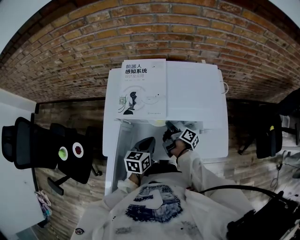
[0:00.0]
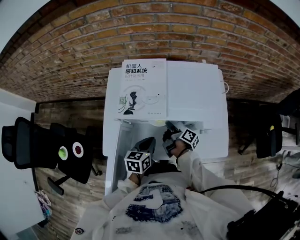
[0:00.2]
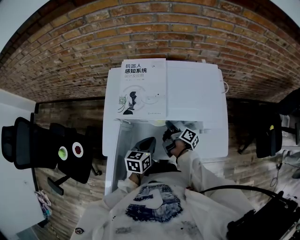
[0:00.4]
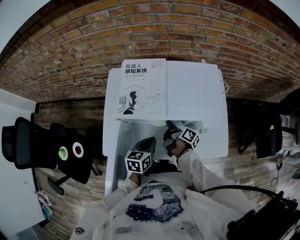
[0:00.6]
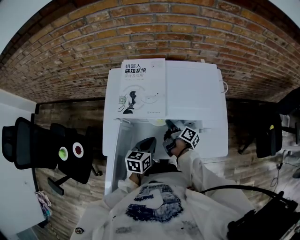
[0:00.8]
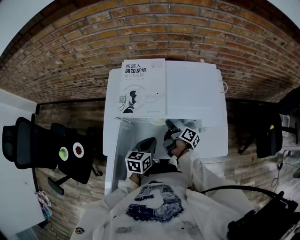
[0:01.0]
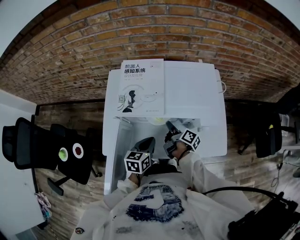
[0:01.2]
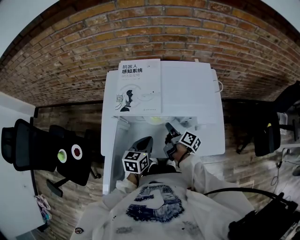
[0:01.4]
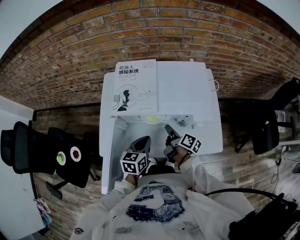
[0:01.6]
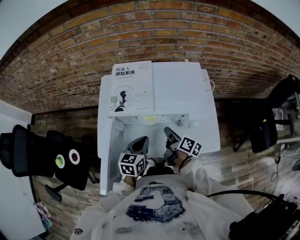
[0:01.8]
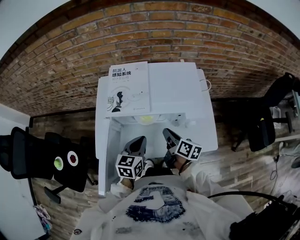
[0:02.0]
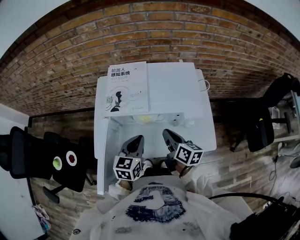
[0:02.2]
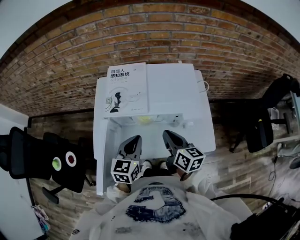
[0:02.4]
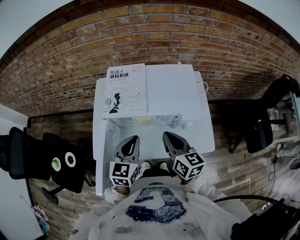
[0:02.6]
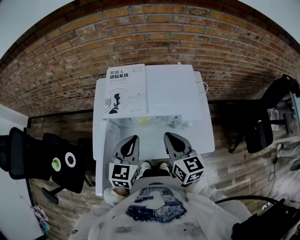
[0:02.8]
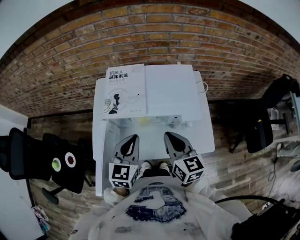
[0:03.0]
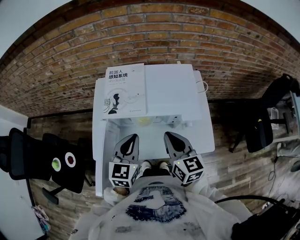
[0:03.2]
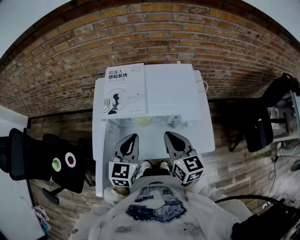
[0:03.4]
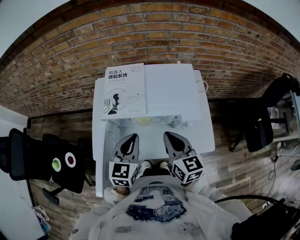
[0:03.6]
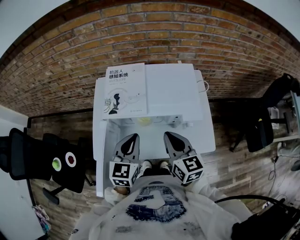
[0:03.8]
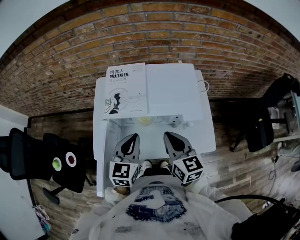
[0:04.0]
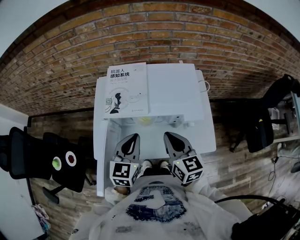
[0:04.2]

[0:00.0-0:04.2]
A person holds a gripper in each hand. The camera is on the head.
0:01.4 to 0:02.8: The left gripper travels upward by about 15 cm, and changes its angle by about 20 degrees.

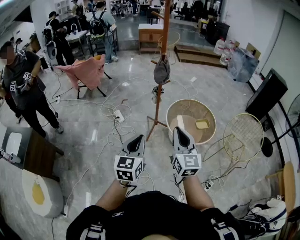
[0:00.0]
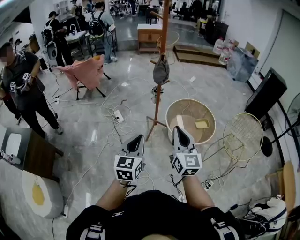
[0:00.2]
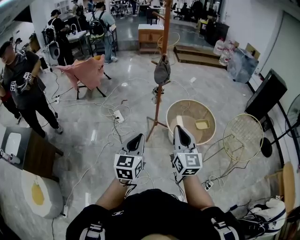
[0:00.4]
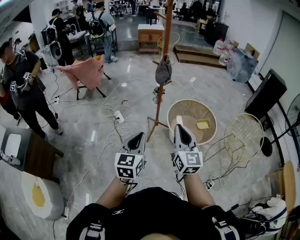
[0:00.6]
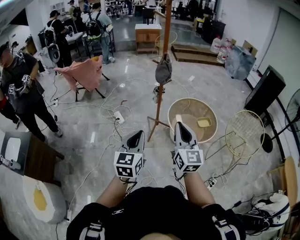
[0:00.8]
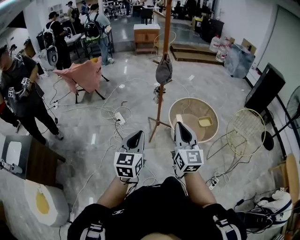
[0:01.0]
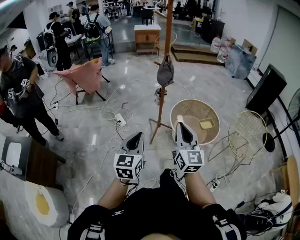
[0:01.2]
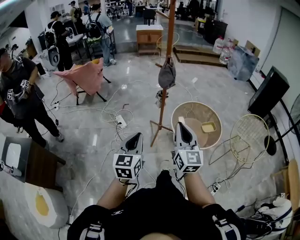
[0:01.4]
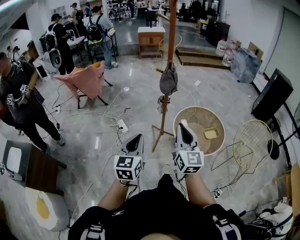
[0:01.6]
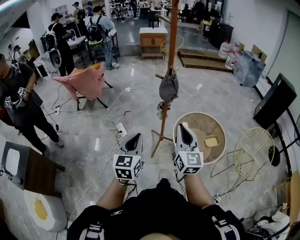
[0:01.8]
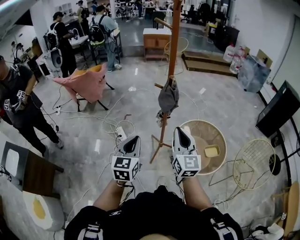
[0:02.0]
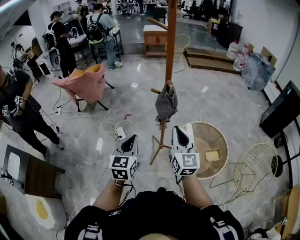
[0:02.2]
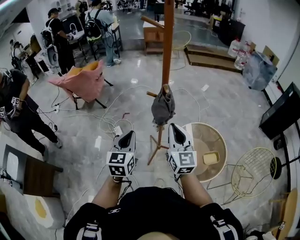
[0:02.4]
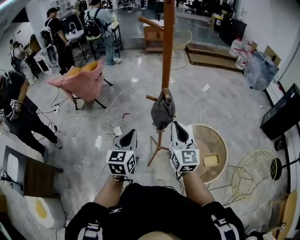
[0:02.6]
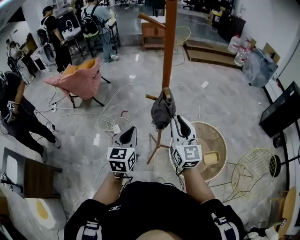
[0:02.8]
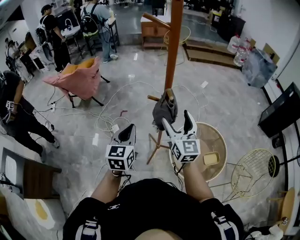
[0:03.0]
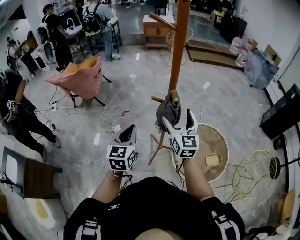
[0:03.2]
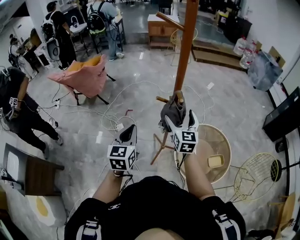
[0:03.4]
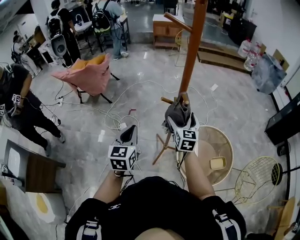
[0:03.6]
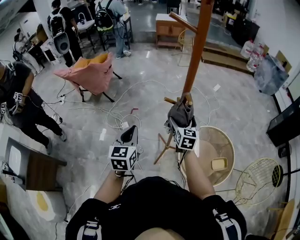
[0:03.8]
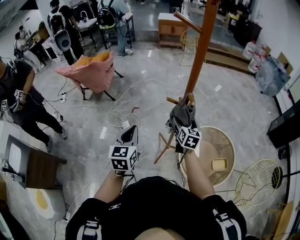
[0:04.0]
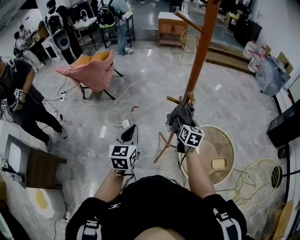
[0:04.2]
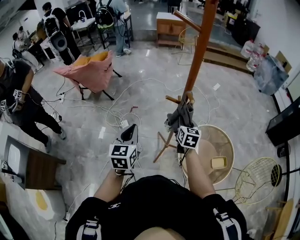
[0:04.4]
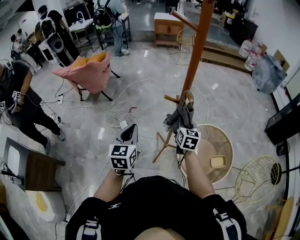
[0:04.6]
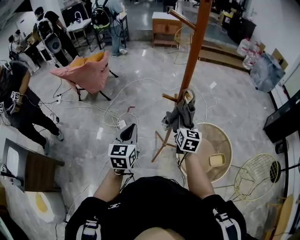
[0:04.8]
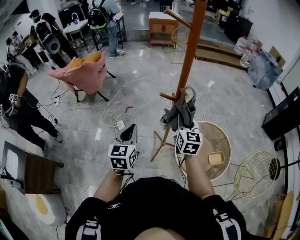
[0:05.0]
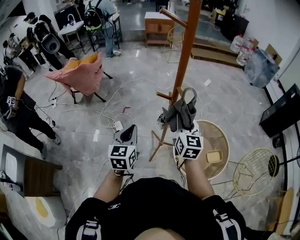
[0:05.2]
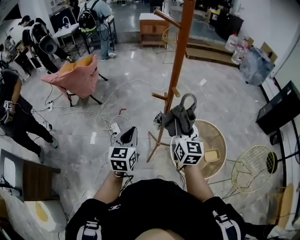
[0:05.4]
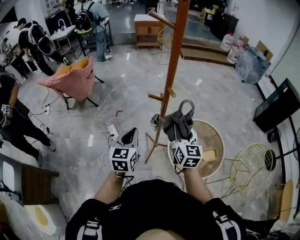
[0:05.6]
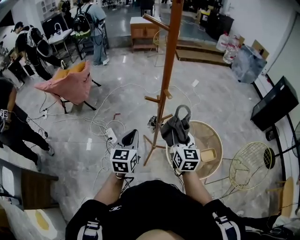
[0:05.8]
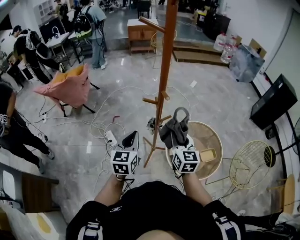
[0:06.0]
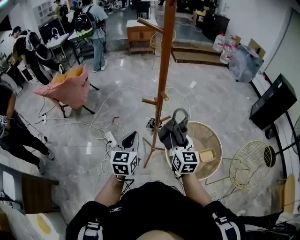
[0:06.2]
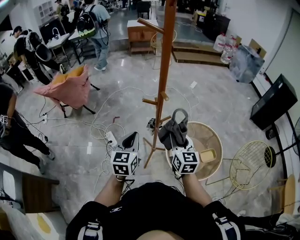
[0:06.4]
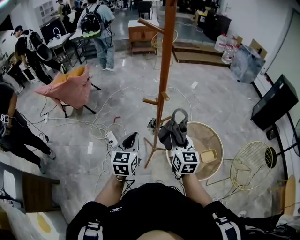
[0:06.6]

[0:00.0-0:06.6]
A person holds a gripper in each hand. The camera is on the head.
0:00.0 to 0:01.6: The left gripper travels forward and to the left by roughly 20 cm; the right gripper is displaced forward by approximately 15 cm.
0:01.6 to 0:03.2: The two grippers travel together, forward, approximately 50 cm. The right gripper opens its fingers.
0:03.2 to 0:05.0: The right gripper moves some 15 cm downward and comes back, and closes its fingers.
0:05.0 to 0:06.6: The right gripper travels backward by some 10 cm, while the left gripper moves to the right, about 10 cm.

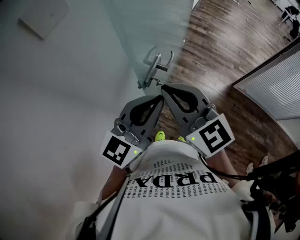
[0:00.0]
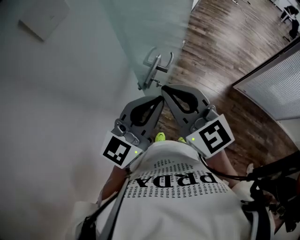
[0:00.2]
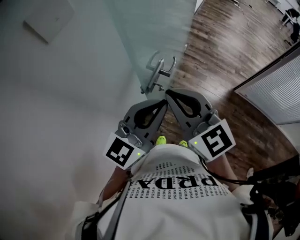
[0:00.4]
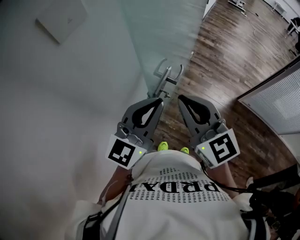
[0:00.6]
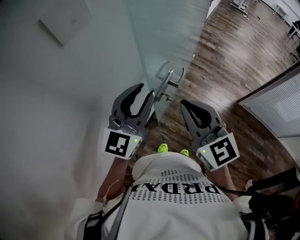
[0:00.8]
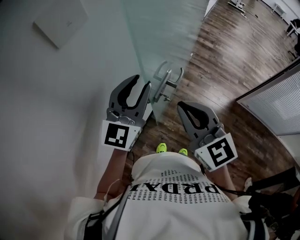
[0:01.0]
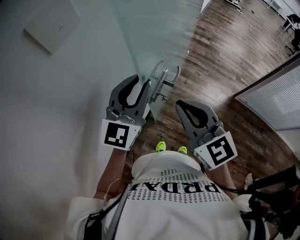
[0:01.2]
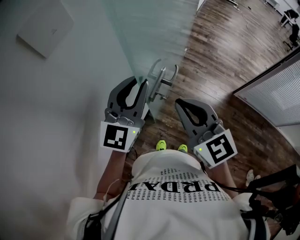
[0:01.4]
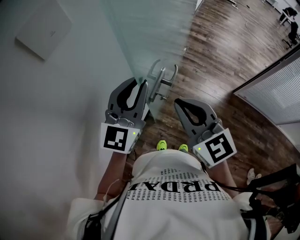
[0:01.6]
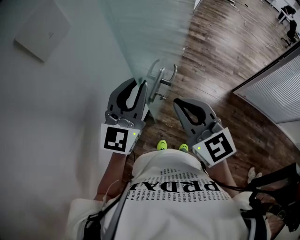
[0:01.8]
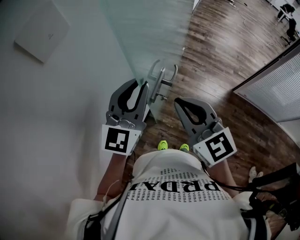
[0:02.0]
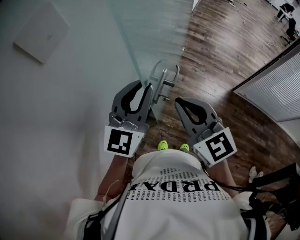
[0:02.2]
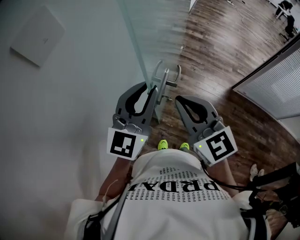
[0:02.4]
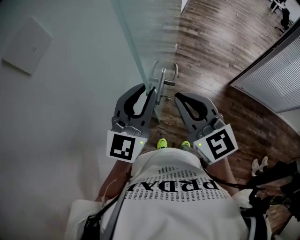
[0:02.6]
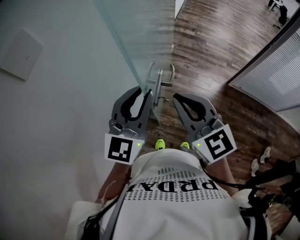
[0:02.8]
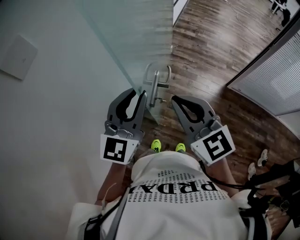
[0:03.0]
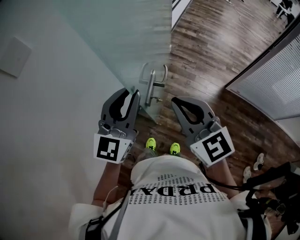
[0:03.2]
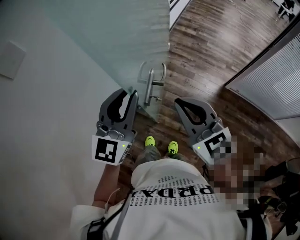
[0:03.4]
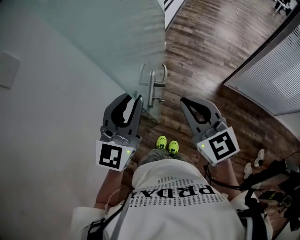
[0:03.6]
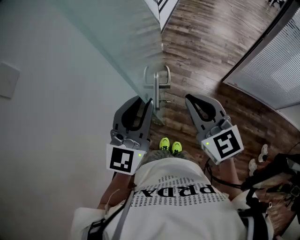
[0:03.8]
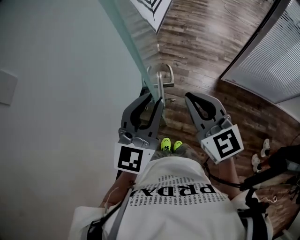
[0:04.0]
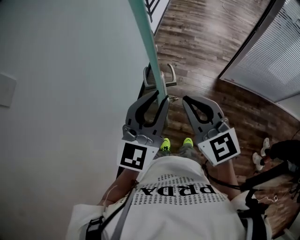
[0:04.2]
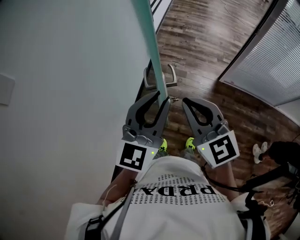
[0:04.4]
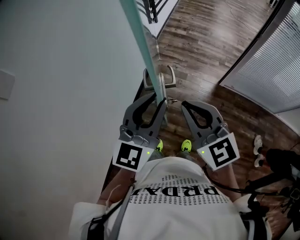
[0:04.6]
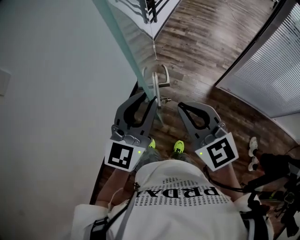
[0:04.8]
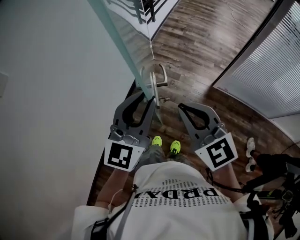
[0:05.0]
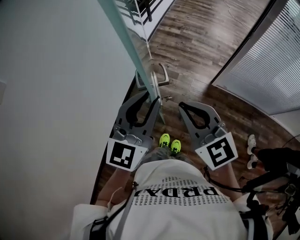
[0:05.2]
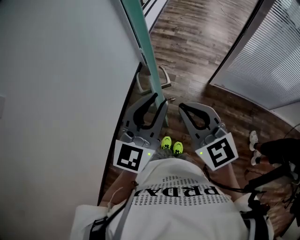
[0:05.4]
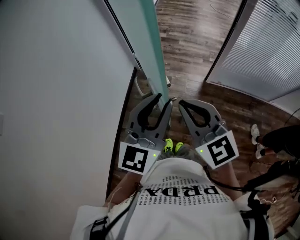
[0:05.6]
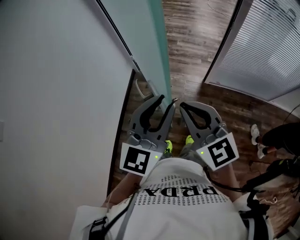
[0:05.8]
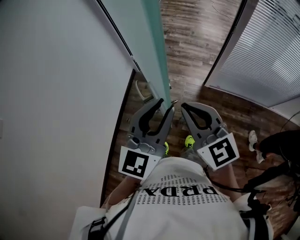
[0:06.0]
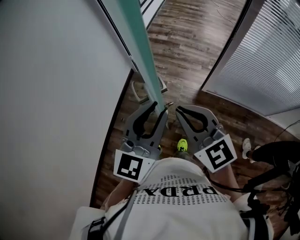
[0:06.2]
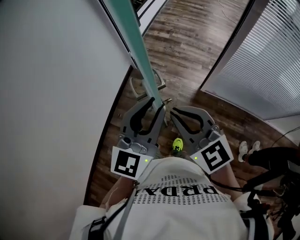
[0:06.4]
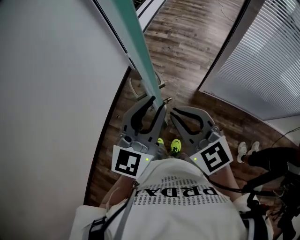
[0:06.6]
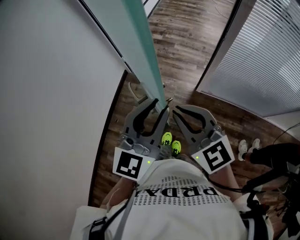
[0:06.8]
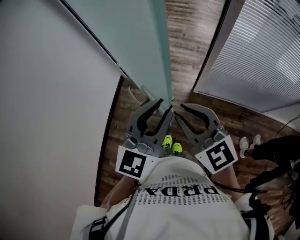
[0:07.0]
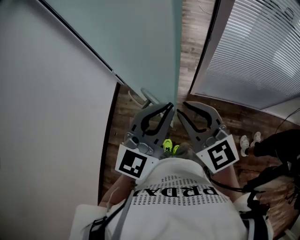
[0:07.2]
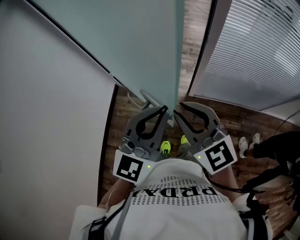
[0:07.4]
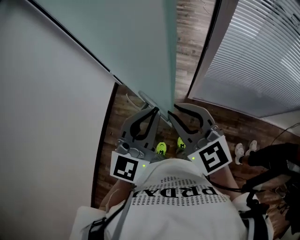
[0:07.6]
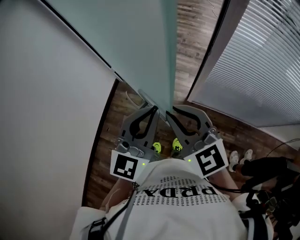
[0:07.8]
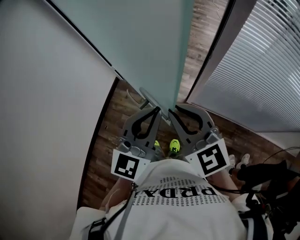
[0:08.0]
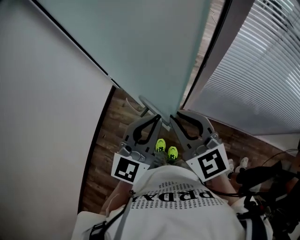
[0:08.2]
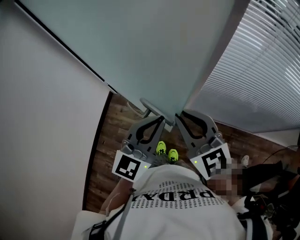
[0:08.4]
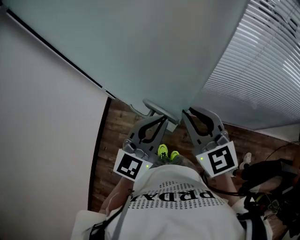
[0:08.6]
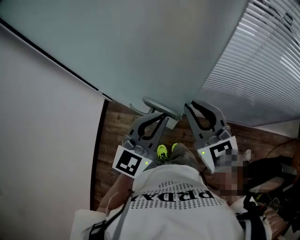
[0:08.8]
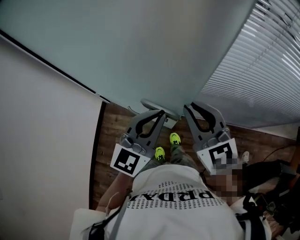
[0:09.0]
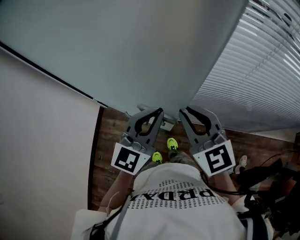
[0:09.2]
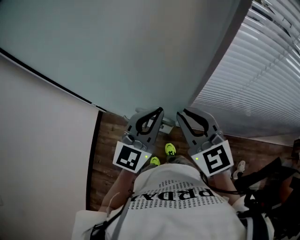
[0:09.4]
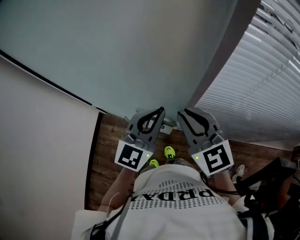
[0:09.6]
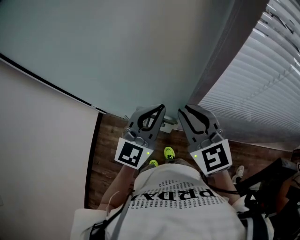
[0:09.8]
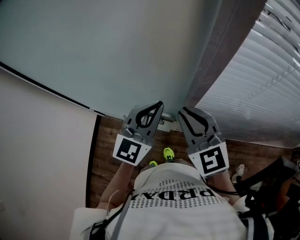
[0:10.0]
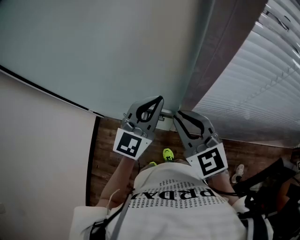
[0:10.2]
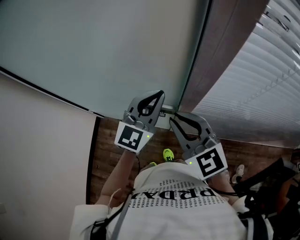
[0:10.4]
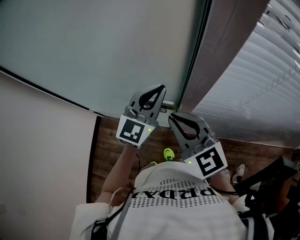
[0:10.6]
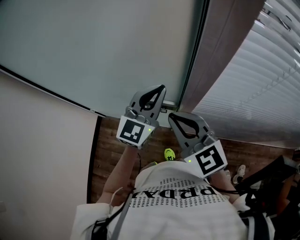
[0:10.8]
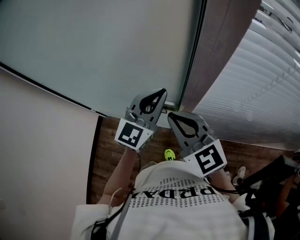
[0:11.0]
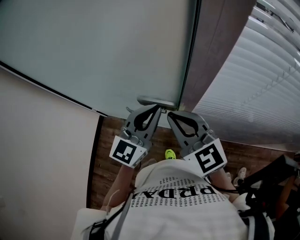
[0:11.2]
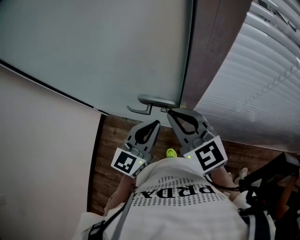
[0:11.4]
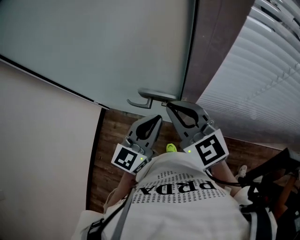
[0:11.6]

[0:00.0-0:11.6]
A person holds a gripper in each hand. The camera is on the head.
0:00.0 to 0:01.4: The left gripper shifts about 10 cm forward and to the left, and changes its angle by some 20 degrees.
0:01.4 to 0:02.8: The two grippers go some 10 cm to the right.
0:02.8 to 0:04.4: The grippers both shift to the right by roughly 20 cm.
0:04.4 to 0:08.8: The grippers stay close to where they were, moving slightly.
0:08.8 to 0:10.2: The left gripper travels forward by about 5 cm.
0:10.2 to 0:11.6: The left gripper shifts some 10 cm backward. Meanwhile the right gripper moves roughly 5 cm.

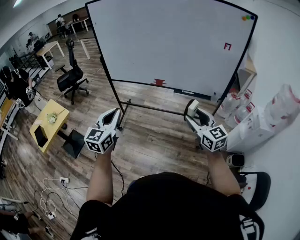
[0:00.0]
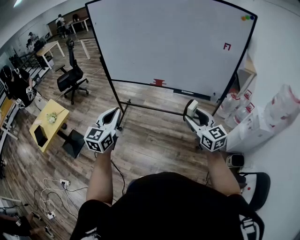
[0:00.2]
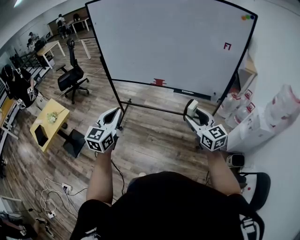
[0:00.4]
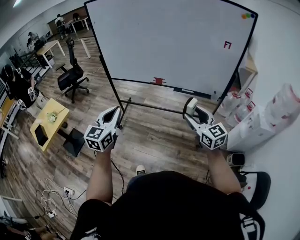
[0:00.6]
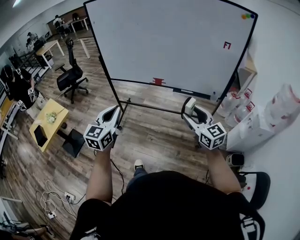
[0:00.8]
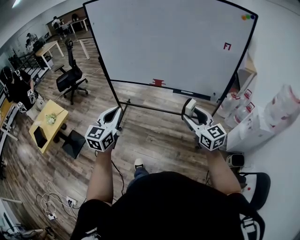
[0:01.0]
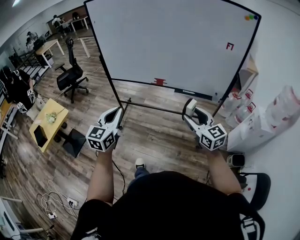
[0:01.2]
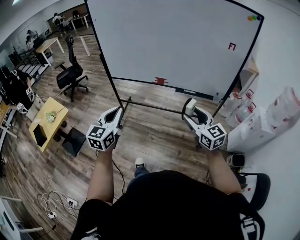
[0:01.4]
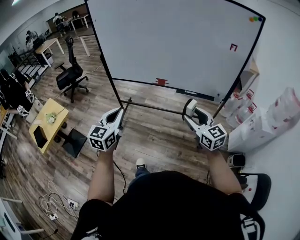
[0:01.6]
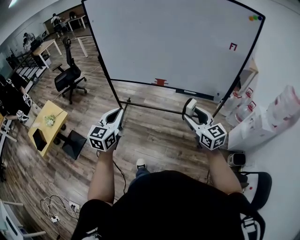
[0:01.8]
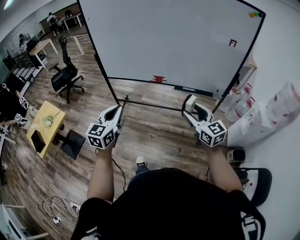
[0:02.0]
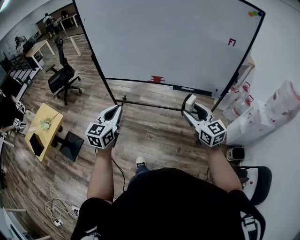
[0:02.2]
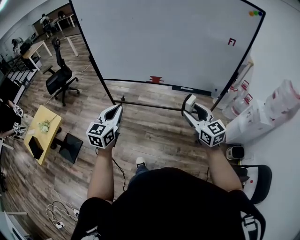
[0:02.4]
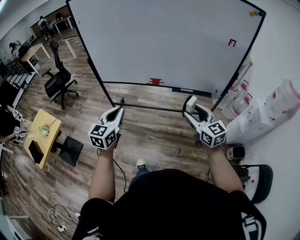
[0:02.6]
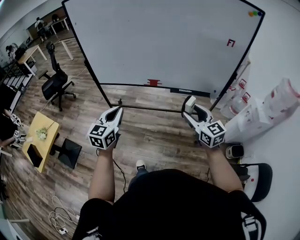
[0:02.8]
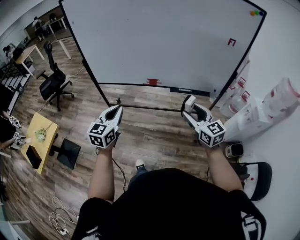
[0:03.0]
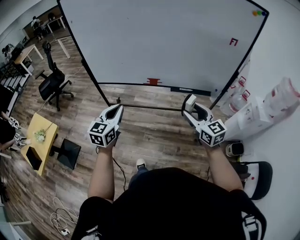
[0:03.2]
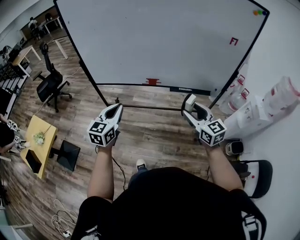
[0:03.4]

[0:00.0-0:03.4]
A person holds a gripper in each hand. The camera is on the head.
0:00.0 to 0:01.6: The left gripper changes place by about 5 cm.
0:01.6 to 0:03.4: The grippers both shift forward by roughly 15 cm.
